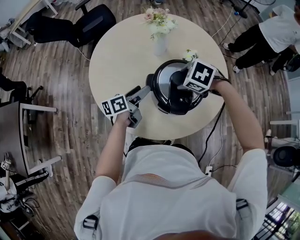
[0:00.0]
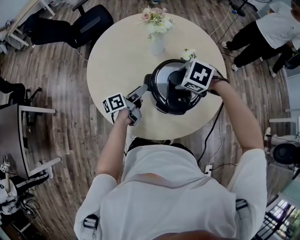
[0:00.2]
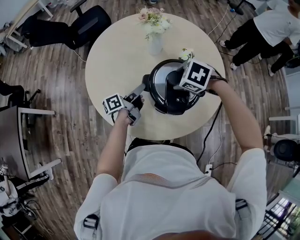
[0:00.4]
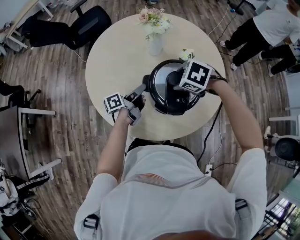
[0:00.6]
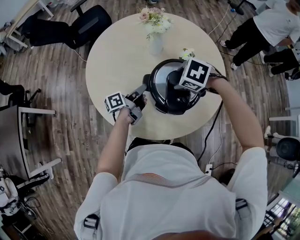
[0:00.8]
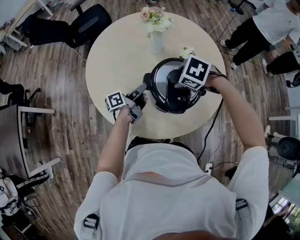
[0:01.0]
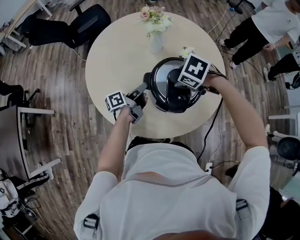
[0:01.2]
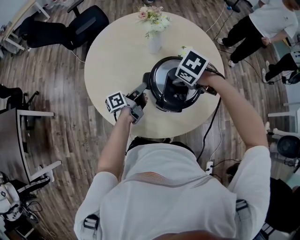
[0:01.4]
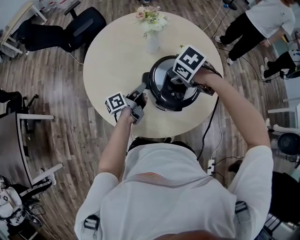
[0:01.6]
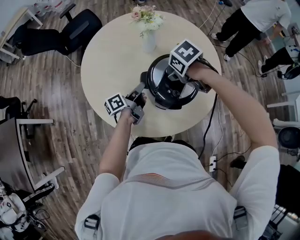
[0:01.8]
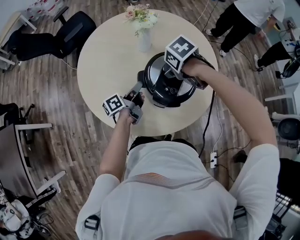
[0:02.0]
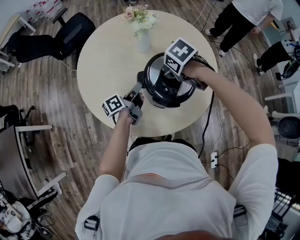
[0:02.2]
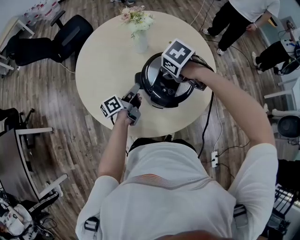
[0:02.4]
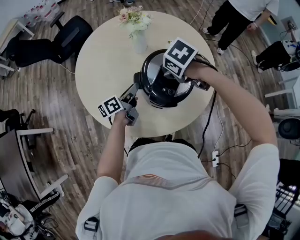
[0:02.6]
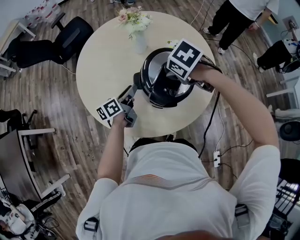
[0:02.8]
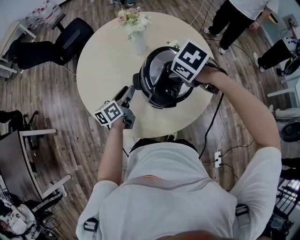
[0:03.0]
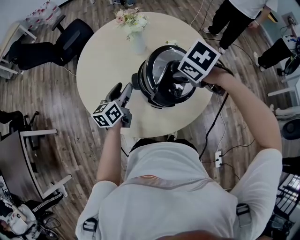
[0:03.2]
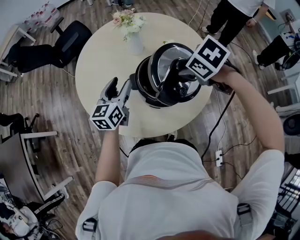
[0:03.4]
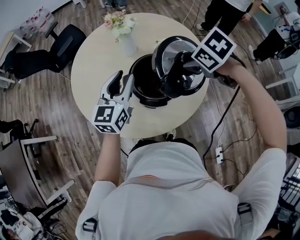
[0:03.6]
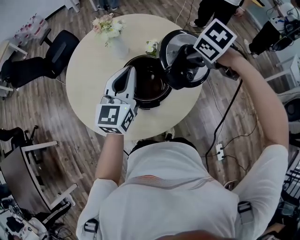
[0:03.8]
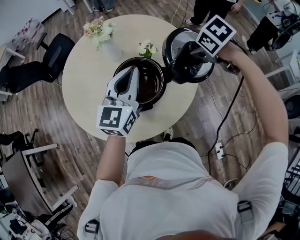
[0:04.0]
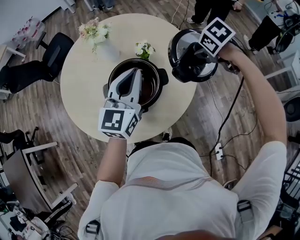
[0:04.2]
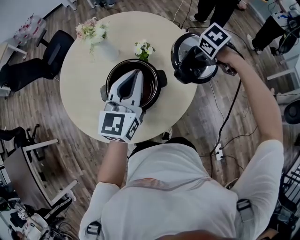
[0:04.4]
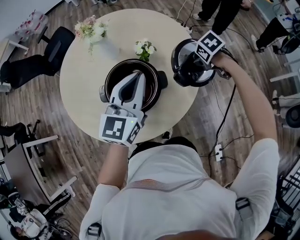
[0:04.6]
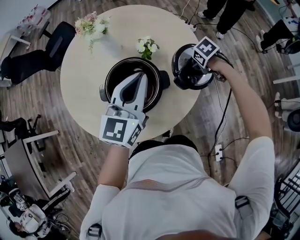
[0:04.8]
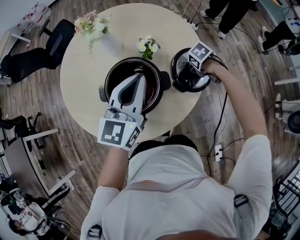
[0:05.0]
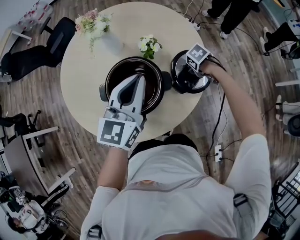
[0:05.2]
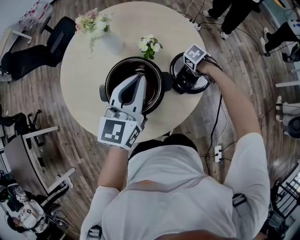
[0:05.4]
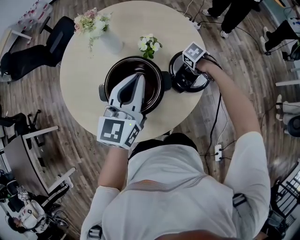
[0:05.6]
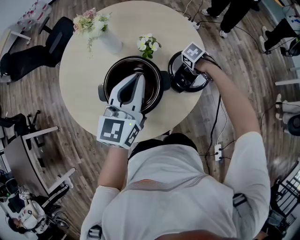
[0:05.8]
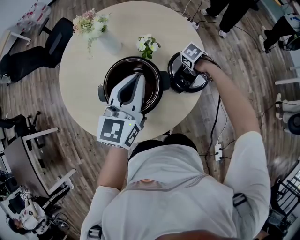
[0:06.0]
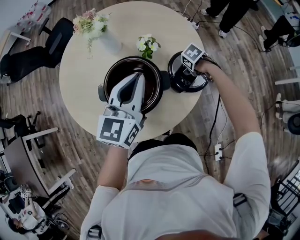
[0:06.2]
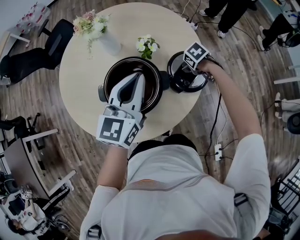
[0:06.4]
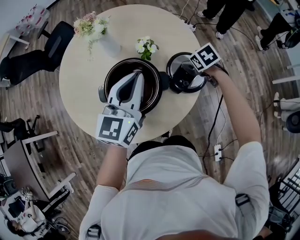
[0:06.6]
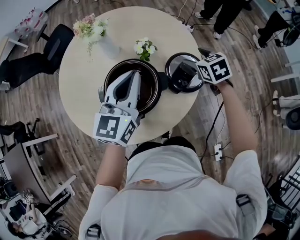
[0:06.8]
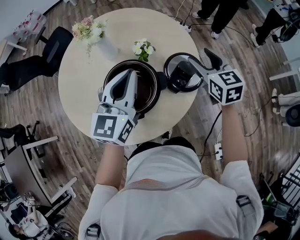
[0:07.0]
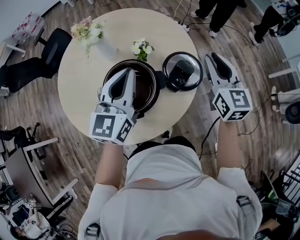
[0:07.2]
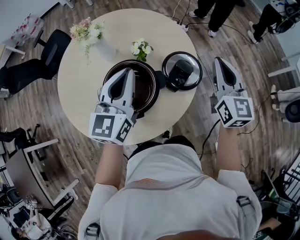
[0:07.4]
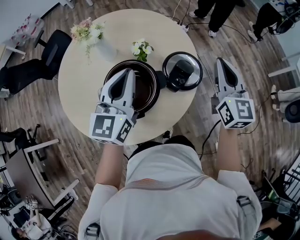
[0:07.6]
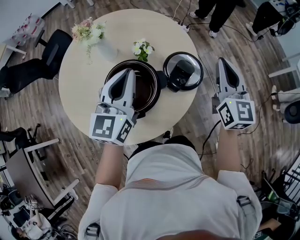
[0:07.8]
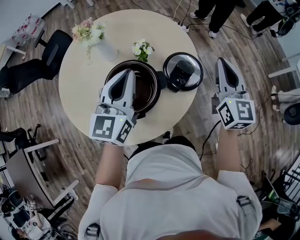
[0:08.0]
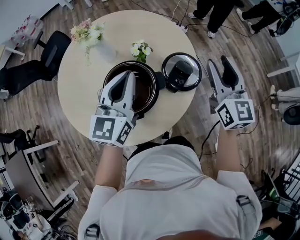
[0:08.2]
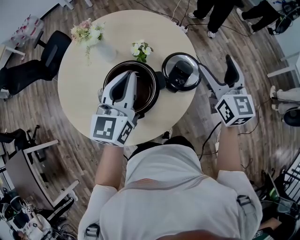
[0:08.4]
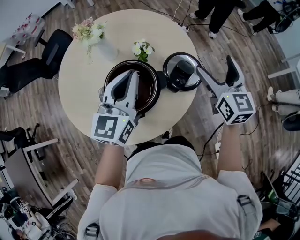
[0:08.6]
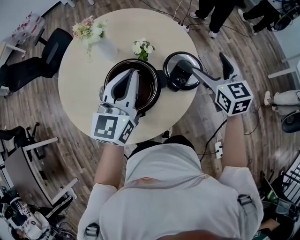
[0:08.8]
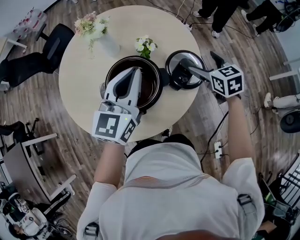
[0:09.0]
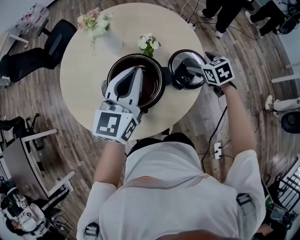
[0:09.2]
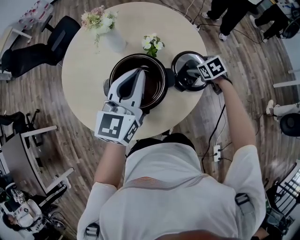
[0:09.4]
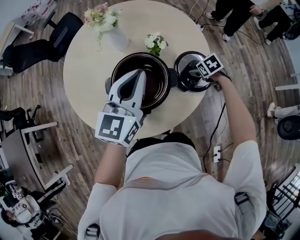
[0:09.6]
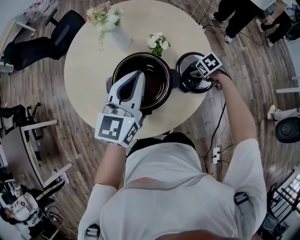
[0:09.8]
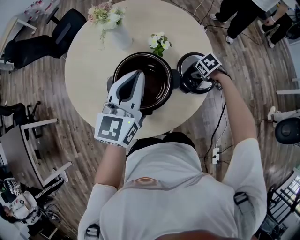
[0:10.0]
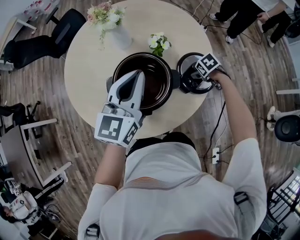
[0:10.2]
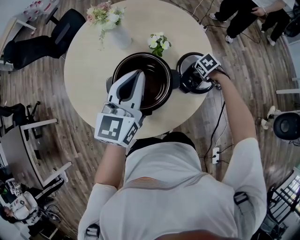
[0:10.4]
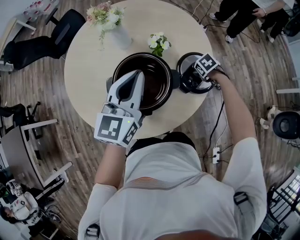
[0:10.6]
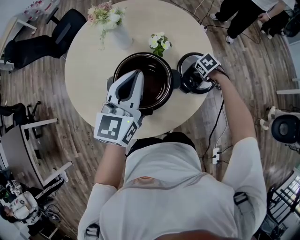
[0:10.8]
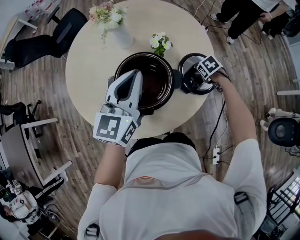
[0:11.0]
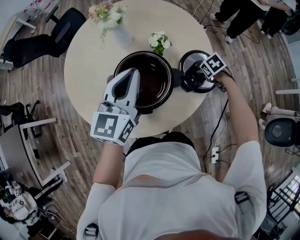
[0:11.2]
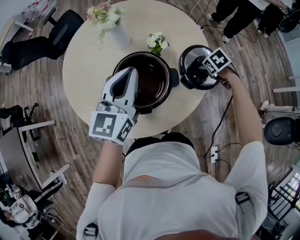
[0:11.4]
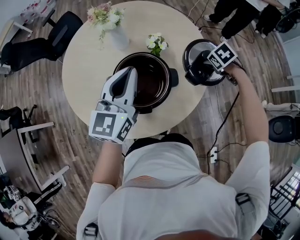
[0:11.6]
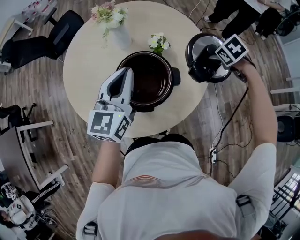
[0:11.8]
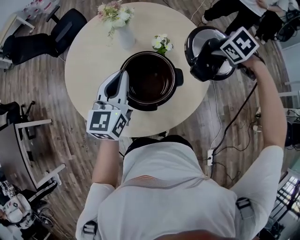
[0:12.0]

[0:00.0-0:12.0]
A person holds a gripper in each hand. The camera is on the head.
0:00.0 to 0:01.6: The right gripper swivels roughly 30 degrees. Meanwhile the left gripper rotates roughly 20 degrees, and closes its fingers.
0:01.6 to 0:03.0: The right gripper moves upward, some 5 cm. The left gripper swivels approximately 30 degrees.
0:03.0 to 0:04.4: The right gripper moves approximately 30 cm, and turns by roughly 20 degrees. Meanwhile the left gripper ends up roughly 30 cm from where it was, rolls clockwise, seen from behind, by roughly 50 degrees, and closes its fingers.
0:04.4 to 0:06.0: The right gripper shifts about 20 cm downward.
0:06.0 to 0:07.6: The right gripper shifts some 35 cm upward, points its fingers about 80 degrees further upward, and closes its fingers.
0:07.6 to 0:09.0: The right gripper goes about 15 cm downward, points its fingers approximately 30 degrees further downward, and opens.
0:09.0 to 0:10.4: The right gripper is displaced downward by roughly 25 cm, tilts its fingers roughly 40 degrees downward, and closes its fingers.
0:10.4 to 0:12.0: The left gripper shifts by roughly 10 cm. Meanwhile the right gripper goes approximately 25 cm upward.

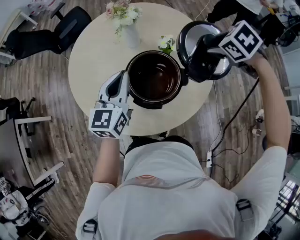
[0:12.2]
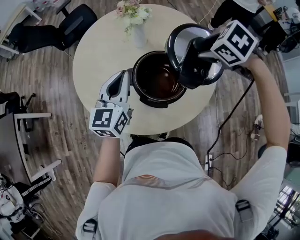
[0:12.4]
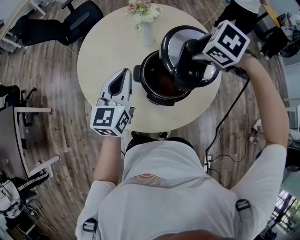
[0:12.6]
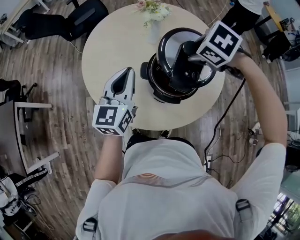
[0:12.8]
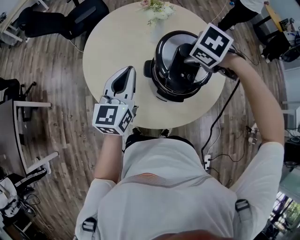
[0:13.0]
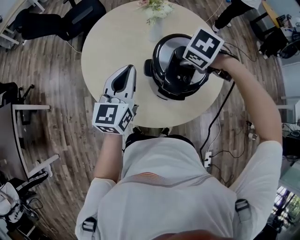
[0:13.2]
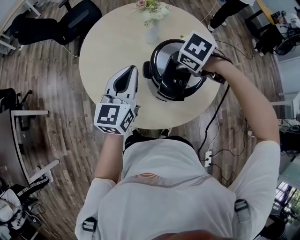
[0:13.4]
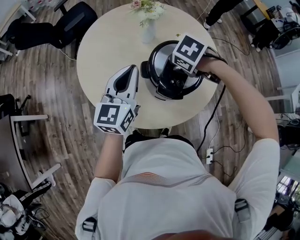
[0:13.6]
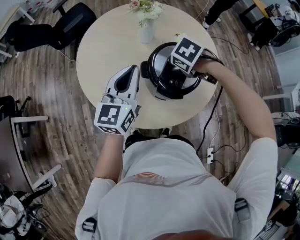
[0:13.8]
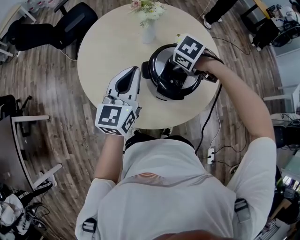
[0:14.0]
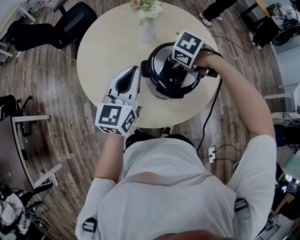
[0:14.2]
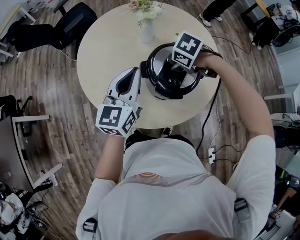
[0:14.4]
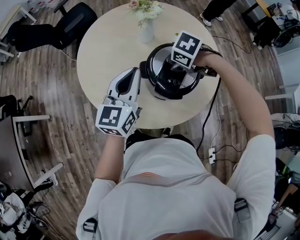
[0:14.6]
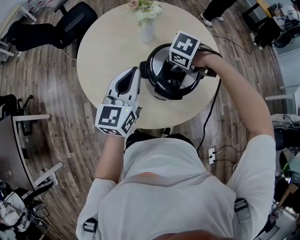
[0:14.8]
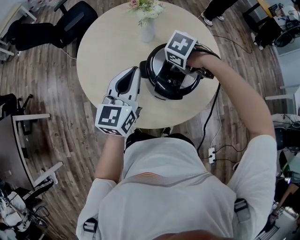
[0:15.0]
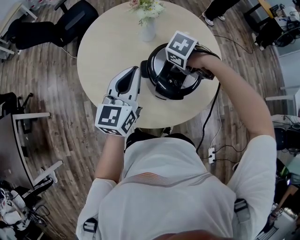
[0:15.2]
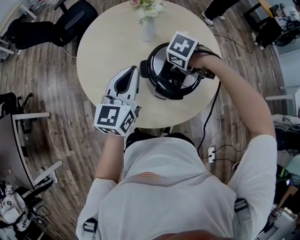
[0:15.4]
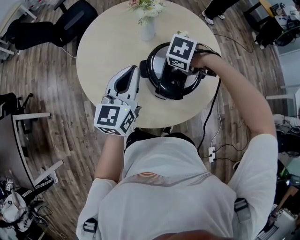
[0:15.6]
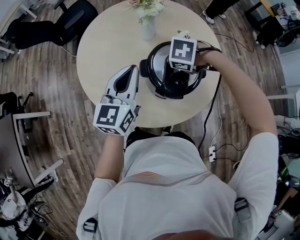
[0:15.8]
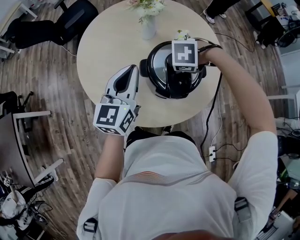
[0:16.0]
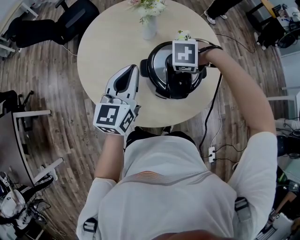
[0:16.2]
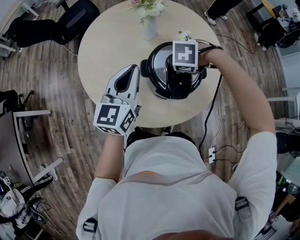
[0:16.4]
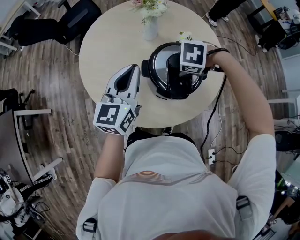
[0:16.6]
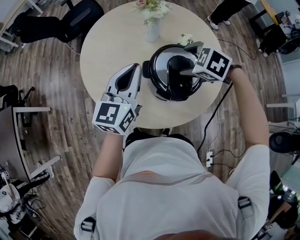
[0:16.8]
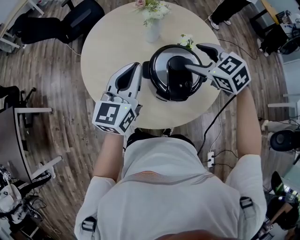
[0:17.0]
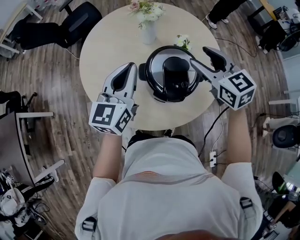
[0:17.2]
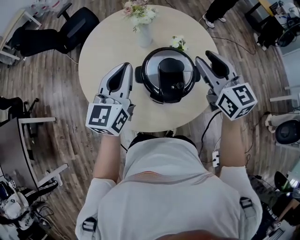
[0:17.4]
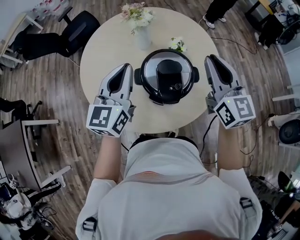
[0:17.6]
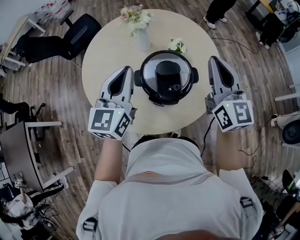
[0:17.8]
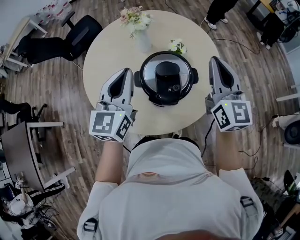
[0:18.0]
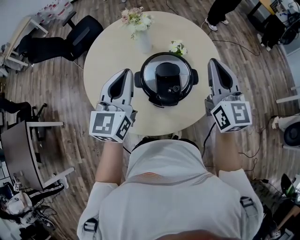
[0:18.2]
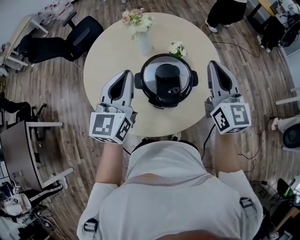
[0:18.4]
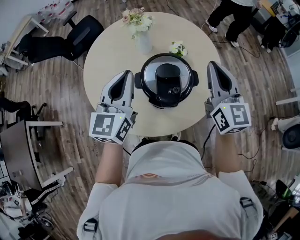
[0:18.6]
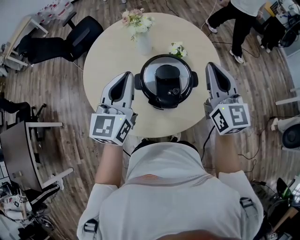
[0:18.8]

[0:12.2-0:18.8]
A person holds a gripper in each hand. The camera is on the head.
0:12.2 to 0:13.8: The left gripper changes place by about 10 cm, while the right gripper ends up about 25 cm from where it was.
0:13.8 to 0:15.4: The grippers move only a little.
0:15.4 to 0:17.2: The right gripper travels upward by some 15 cm, and angles its fingers upward, by roughly 60 degrees.
0:17.2 to 0:18.8: The left gripper ends up some 5 cm from where it was. The right gripper shifts approximately 10 cm to the right and upward, changes its angle by roughly 30 degrees, and closes up.

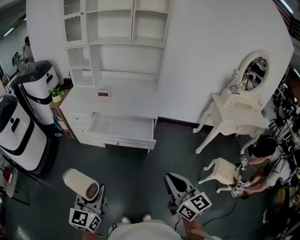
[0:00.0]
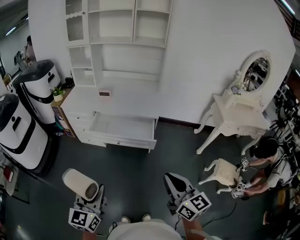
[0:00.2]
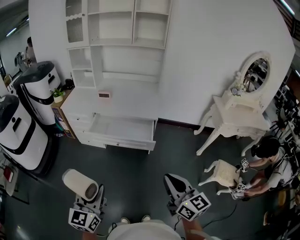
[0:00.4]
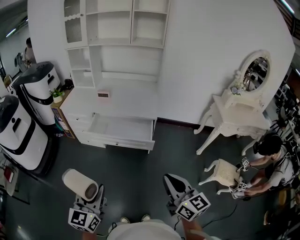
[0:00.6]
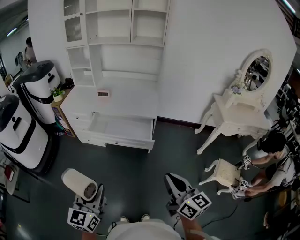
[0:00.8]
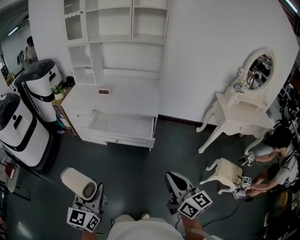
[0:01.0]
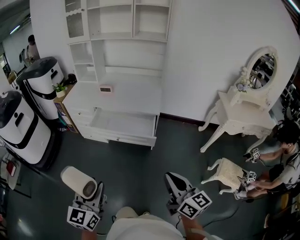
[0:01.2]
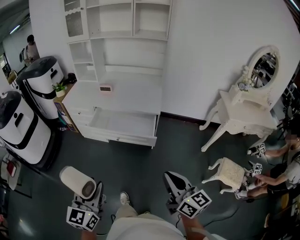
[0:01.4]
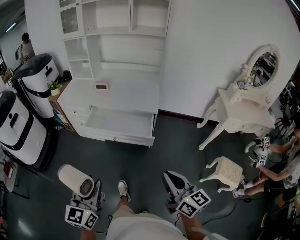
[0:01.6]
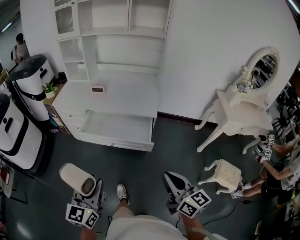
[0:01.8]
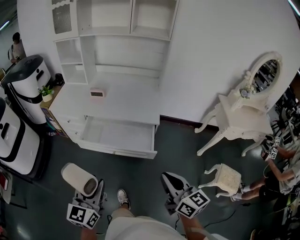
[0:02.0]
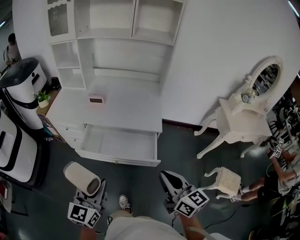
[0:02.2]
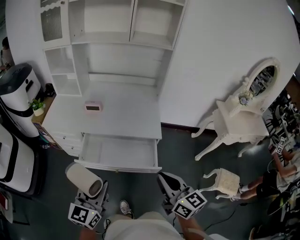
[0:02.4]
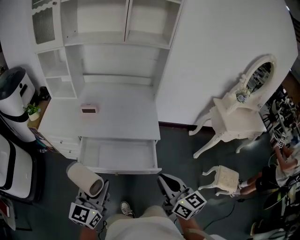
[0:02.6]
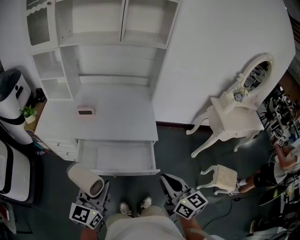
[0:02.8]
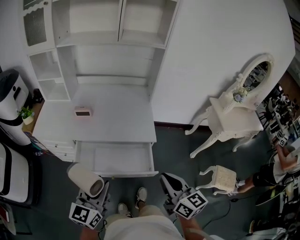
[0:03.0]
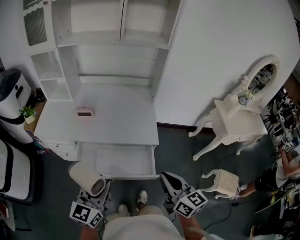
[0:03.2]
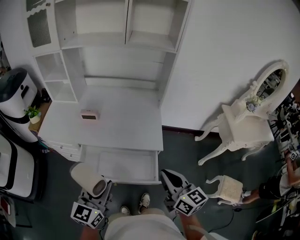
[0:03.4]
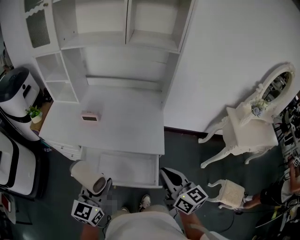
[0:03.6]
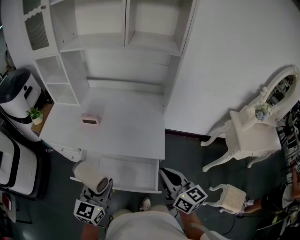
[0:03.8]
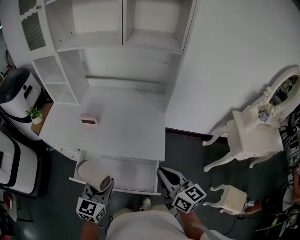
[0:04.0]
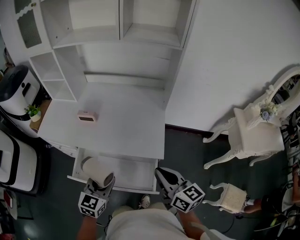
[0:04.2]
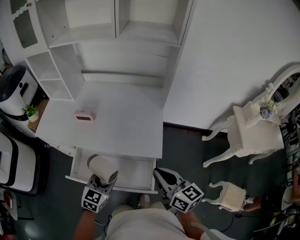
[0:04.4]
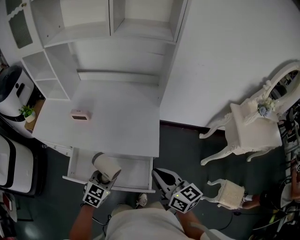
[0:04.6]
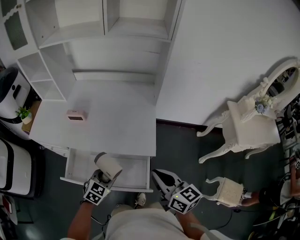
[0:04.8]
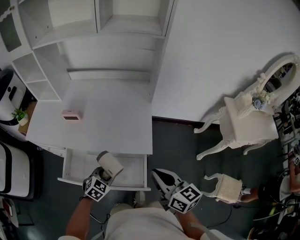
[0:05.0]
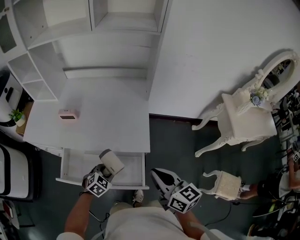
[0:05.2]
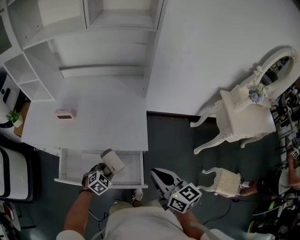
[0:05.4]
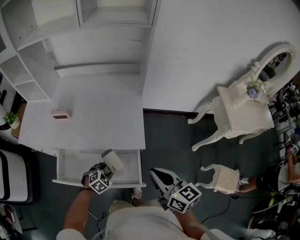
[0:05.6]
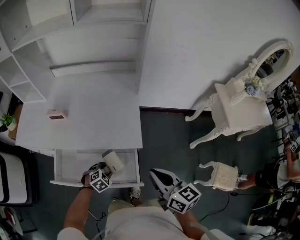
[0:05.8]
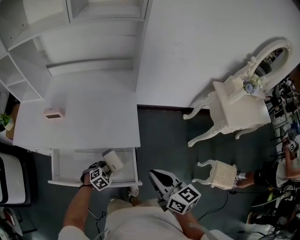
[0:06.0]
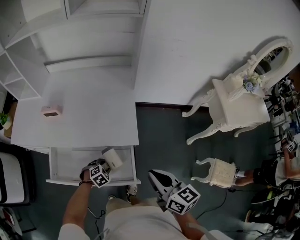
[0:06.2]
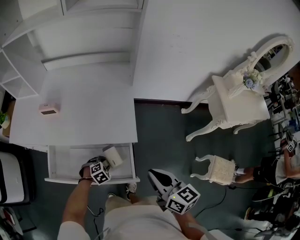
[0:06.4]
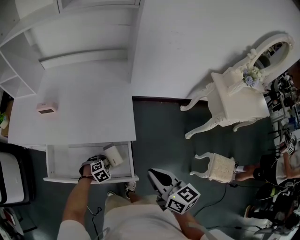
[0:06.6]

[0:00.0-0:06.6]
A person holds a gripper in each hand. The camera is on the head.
0:00.0 to 0:01.6: The right gripper ends up roughly 10 cm from where it was, while the left gripper moves some 5 cm.
0:01.6 to 0:03.2: Both grippers travel together forward, approximately 35 cm.
0:03.2 to 0:05.0: The right gripper travels forward and to the right by approximately 15 cm, while the left gripper heads downward, forward and to the right, covering some 30 cm, and tips its fingers downward by about 40 degrees.
0:05.0 to 0:06.6: The right gripper travels to the right and downward by some 10 cm. The left gripper shifts approximately 15 cm downward, and rotates some 40 degrees.
